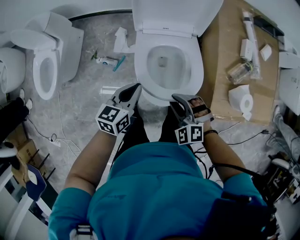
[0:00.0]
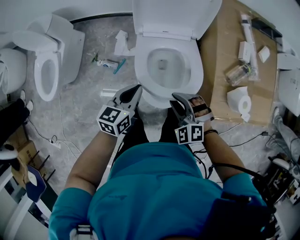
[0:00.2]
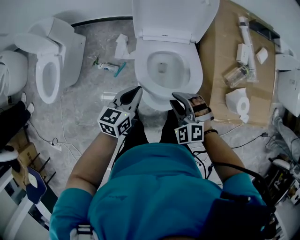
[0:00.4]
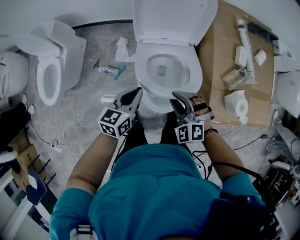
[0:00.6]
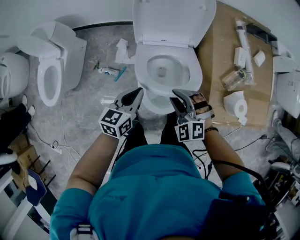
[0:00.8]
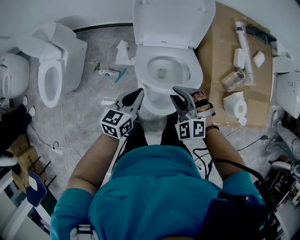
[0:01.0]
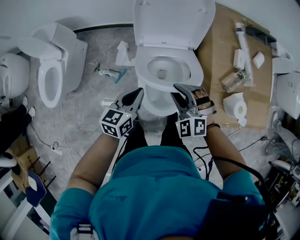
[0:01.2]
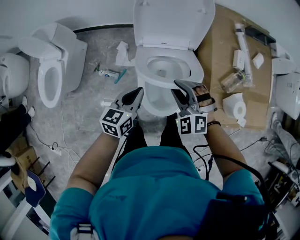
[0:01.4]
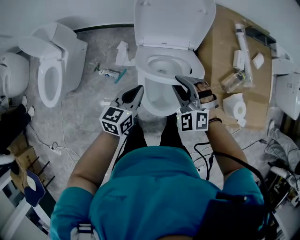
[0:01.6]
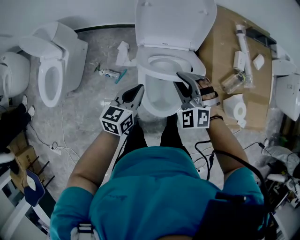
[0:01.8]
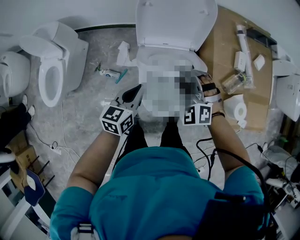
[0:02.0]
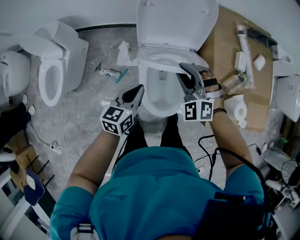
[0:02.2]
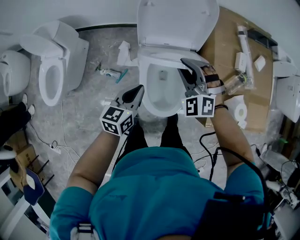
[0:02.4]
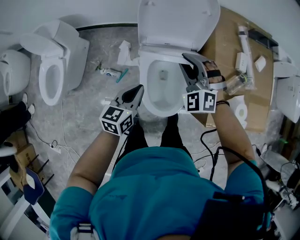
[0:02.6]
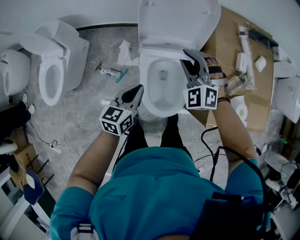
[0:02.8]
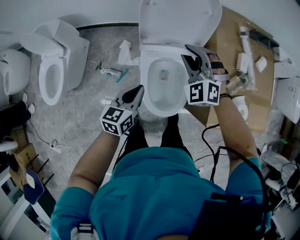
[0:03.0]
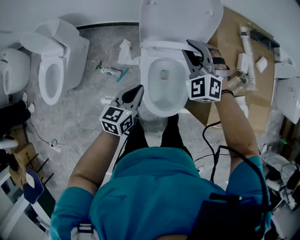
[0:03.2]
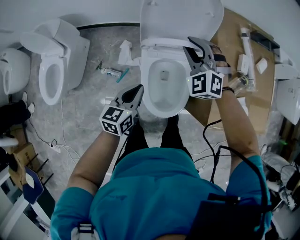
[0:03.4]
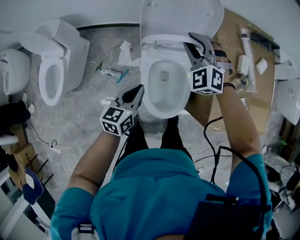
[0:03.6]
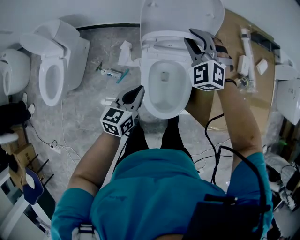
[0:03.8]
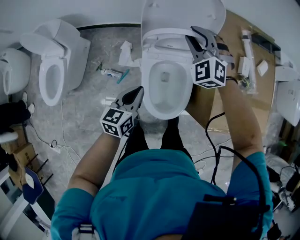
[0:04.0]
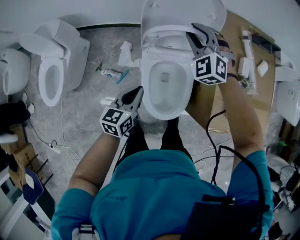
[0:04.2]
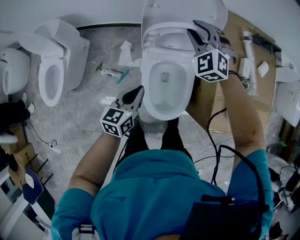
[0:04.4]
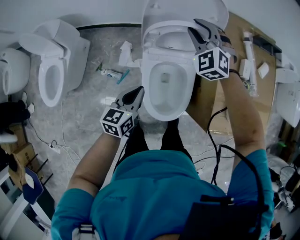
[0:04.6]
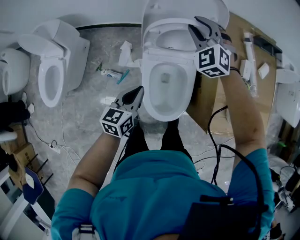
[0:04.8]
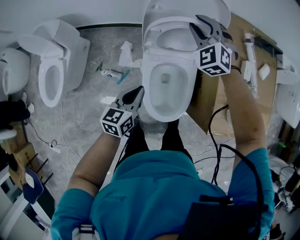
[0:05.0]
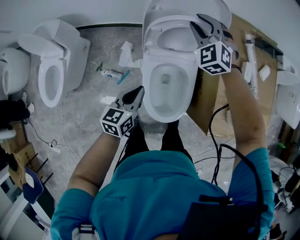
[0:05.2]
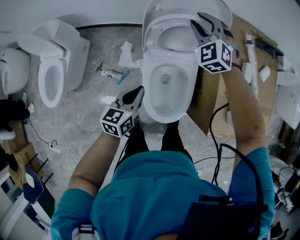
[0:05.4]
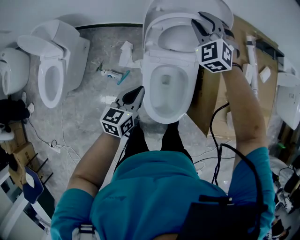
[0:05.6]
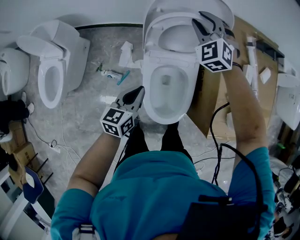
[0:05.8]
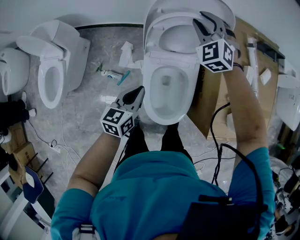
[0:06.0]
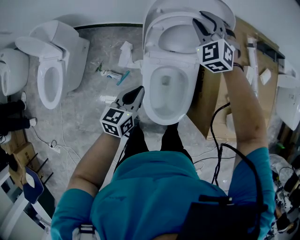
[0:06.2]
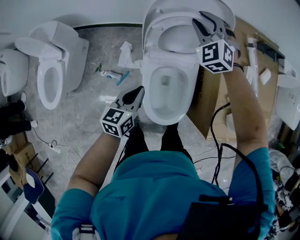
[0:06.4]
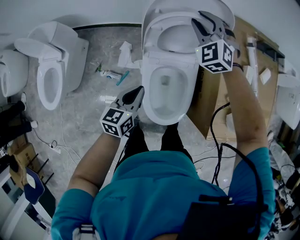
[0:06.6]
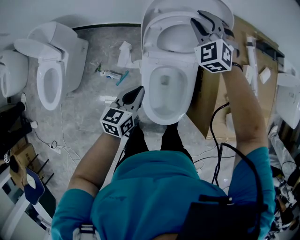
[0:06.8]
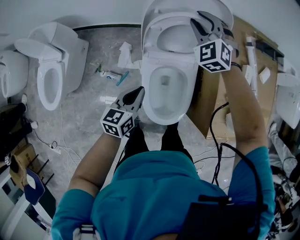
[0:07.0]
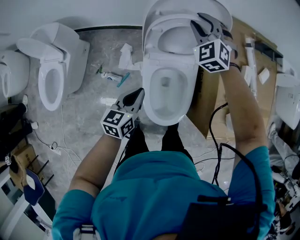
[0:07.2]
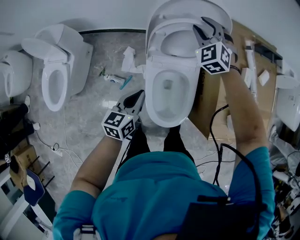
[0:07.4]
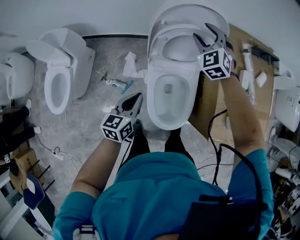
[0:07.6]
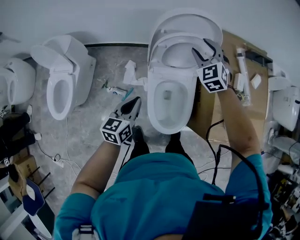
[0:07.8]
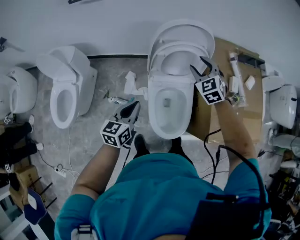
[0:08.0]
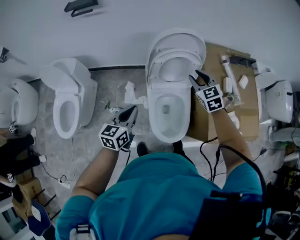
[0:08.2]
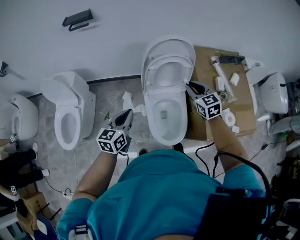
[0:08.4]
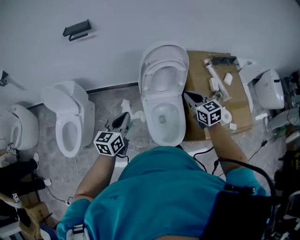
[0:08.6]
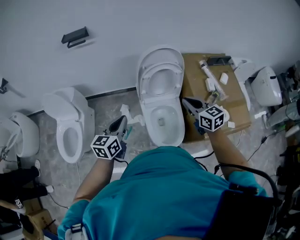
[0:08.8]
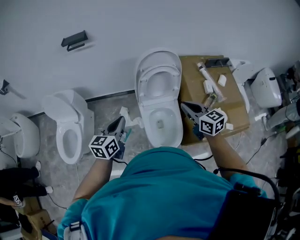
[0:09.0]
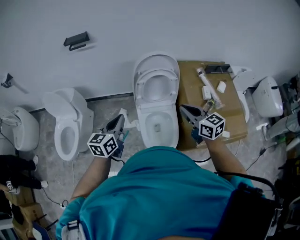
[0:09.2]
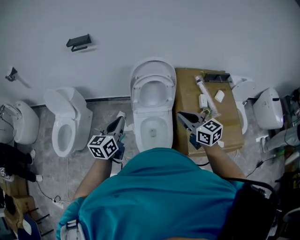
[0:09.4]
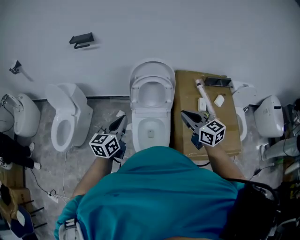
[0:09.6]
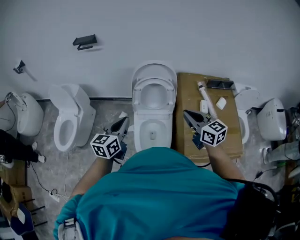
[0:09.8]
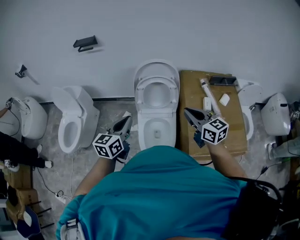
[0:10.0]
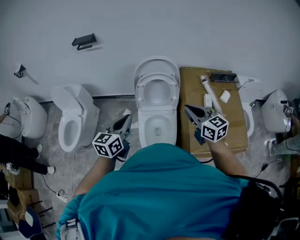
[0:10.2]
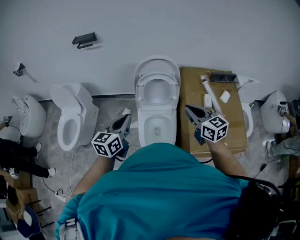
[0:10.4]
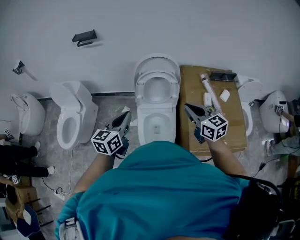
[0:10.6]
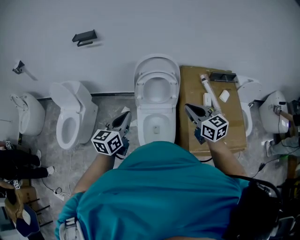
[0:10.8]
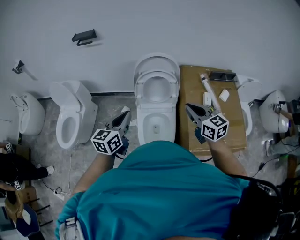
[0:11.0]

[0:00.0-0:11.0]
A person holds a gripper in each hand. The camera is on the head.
0:00.0 to 0:01.6: The left gripper shifts by some 5 cm, while the right gripper shifts roughly 15 cm forward and upward.
0:01.6 to 0:03.2: The right gripper shifts about 15 cm forward.
0:03.2 to 0:04.8: The right gripper travels forward by approximately 10 cm.
0:04.8 to 0:06.2: The right gripper shifts some 5 cm forward.
0:06.2 to 0:07.8: The left gripper goes some 5 cm upward; the right gripper is displaced backward by about 5 cm.
0:07.8 to 0:09.4: The right gripper moves backward and upward, approximately 35 cm, twists approximately 40 degrees clockwise, seen from behind, and closes up, while the left gripper goes about 20 cm upward.
0:09.4 to 0:11.0: The grippers move only a little.

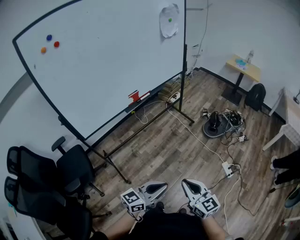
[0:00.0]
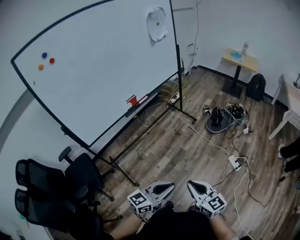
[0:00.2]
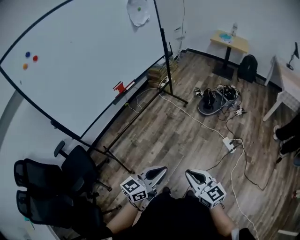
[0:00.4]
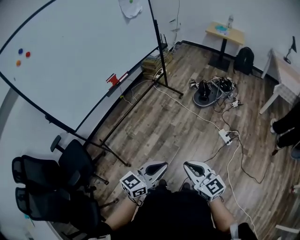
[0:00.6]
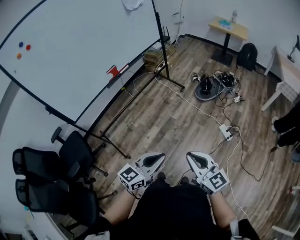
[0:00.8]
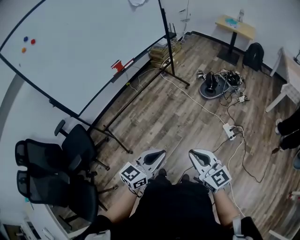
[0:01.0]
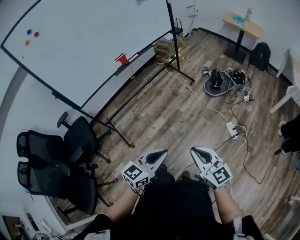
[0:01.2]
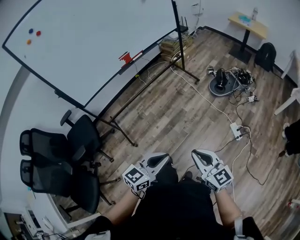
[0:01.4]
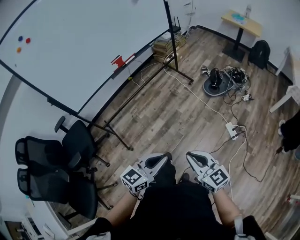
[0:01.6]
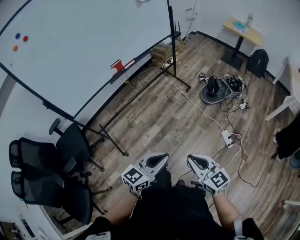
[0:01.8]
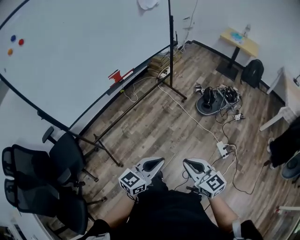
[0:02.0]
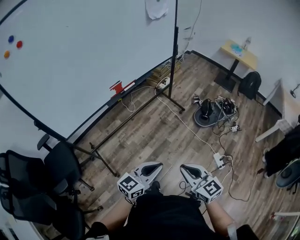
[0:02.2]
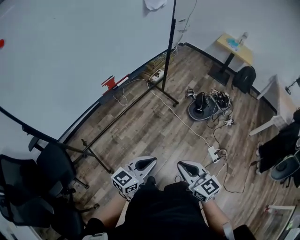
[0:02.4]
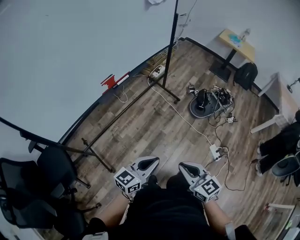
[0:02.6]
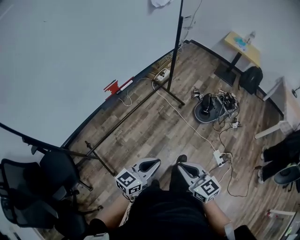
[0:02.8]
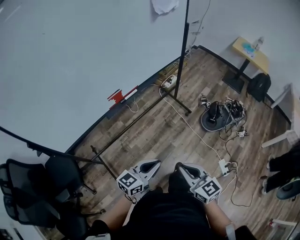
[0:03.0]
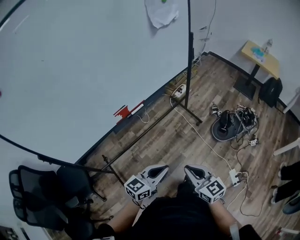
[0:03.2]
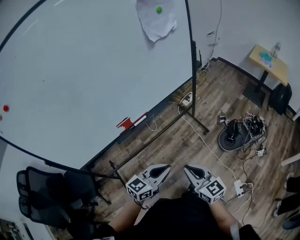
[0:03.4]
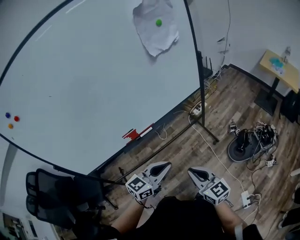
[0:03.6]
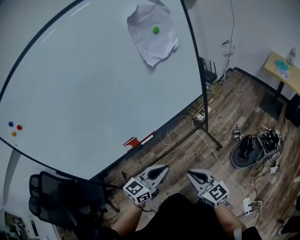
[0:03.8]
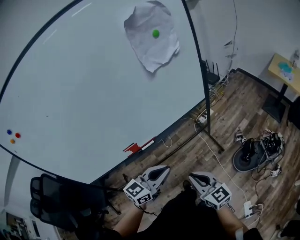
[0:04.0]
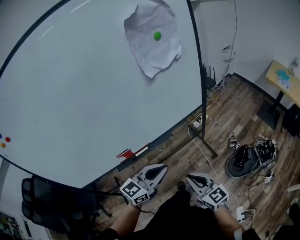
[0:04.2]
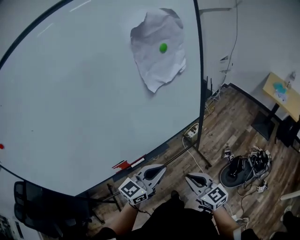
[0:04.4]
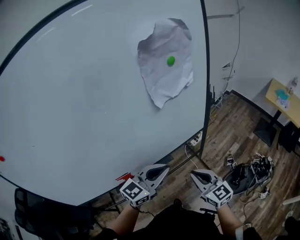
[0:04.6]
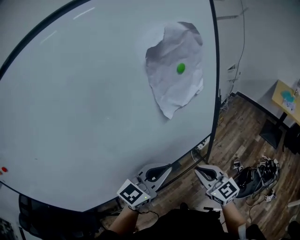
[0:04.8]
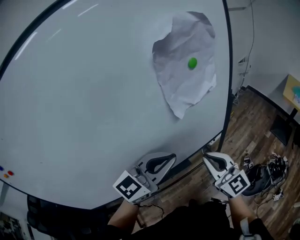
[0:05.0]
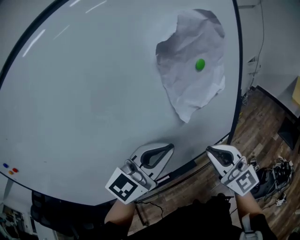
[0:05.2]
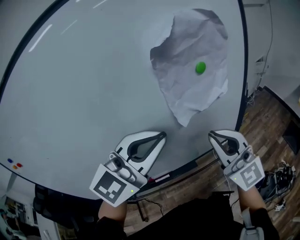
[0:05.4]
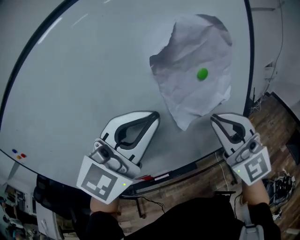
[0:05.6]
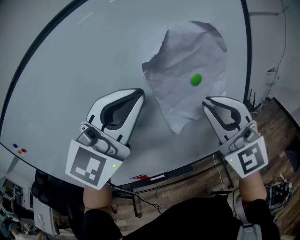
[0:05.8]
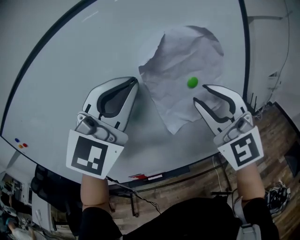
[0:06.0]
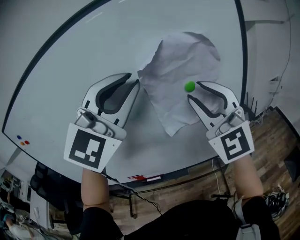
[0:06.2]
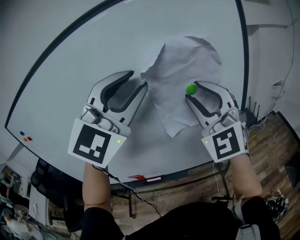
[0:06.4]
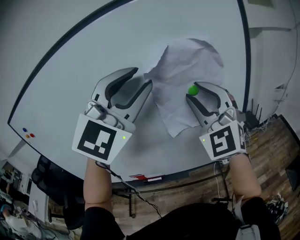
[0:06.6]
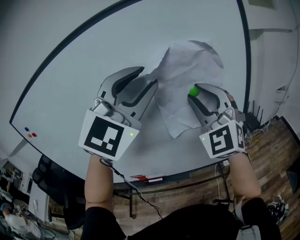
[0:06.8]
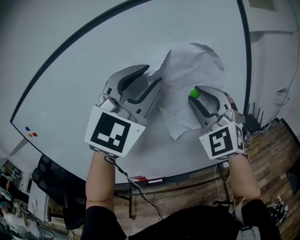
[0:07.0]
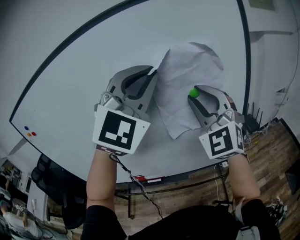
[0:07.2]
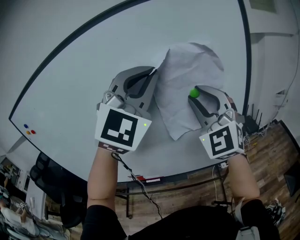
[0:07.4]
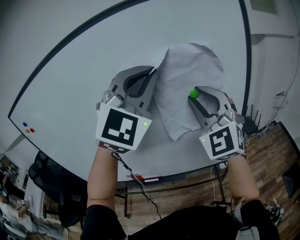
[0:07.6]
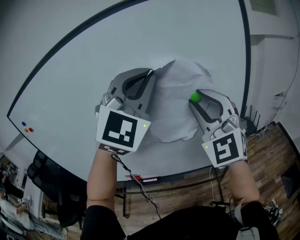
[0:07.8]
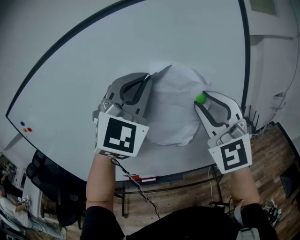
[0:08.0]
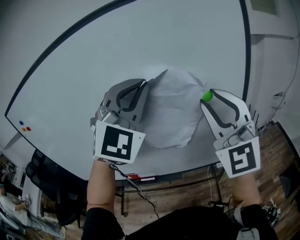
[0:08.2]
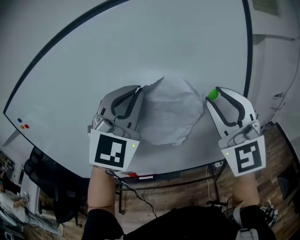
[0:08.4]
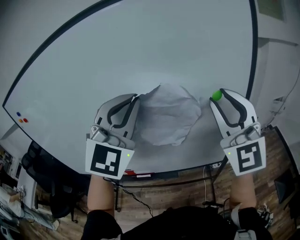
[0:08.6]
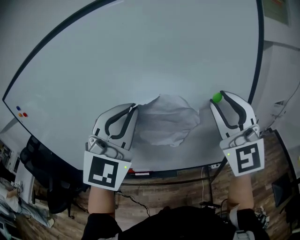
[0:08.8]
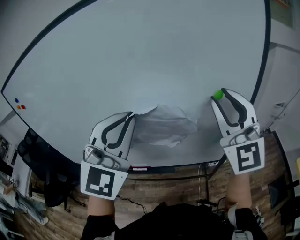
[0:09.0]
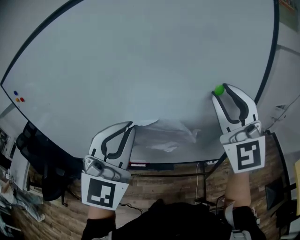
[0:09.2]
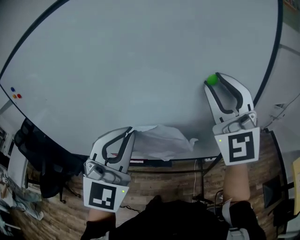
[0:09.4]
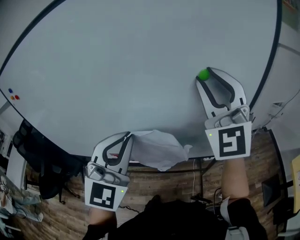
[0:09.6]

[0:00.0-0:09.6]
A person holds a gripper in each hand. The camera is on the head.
0:00.0 to 0:01.6: The grippers both shift to the right by roughly 15 cm.
0:01.6 to 0:03.2: Both grippers travel together forward, about 35 cm.
0:03.2 to 0:04.8: Both grippers are carried forward, approximately 40 cm. The left gripper travels upward by roughly 25 cm, and changes its angle by approximately 30 degrees.
0:04.8 to 0:06.4: The right gripper travels upward and forward by approximately 35 cm, twists approximately 40 degrees counterclockwise, seen from behind, and opens; the left gripper is displaced upward by roughly 30 cm, swivels some 60 degrees, and opens.
0:06.4 to 0:08.0: The left gripper closes its fingers.
0:08.0 to 0:09.6: The left gripper travels downward, backward and to the left by approximately 20 cm, and turns by roughly 20 degrees.

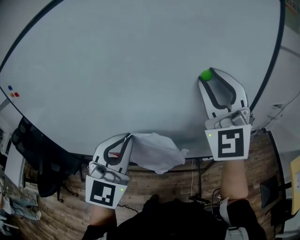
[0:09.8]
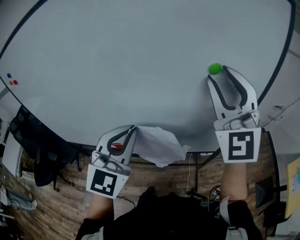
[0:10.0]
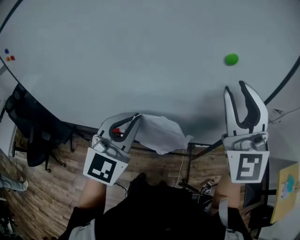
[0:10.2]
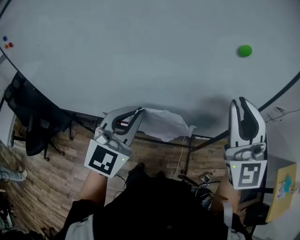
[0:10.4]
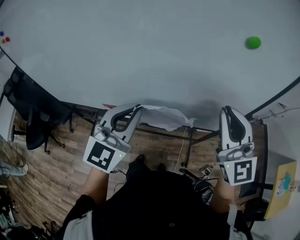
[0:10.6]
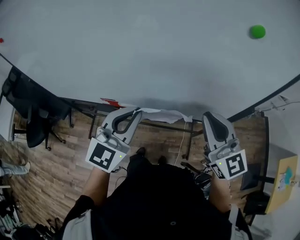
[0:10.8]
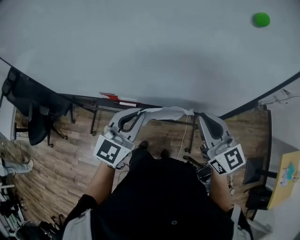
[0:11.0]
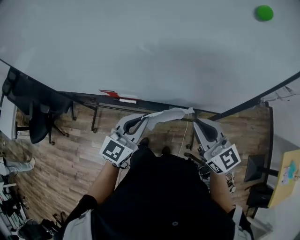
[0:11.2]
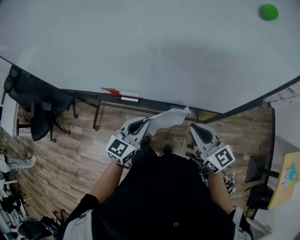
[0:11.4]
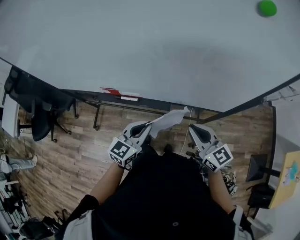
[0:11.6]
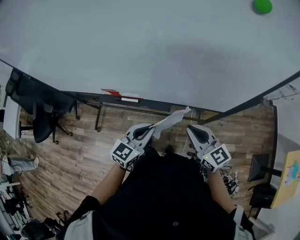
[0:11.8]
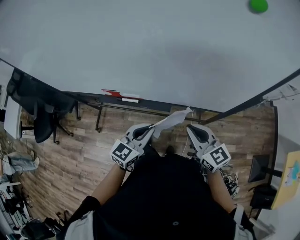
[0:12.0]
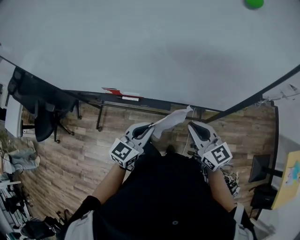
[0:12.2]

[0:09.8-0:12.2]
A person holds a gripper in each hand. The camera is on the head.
0:09.8 to 0:11.0: Both grippers move downward, approximately 25 cm. The left gripper rotates roughly 30 degrees; the right gripper twists approximately 50 degrees clockwise, seen from behind, and closes up.
0:11.0 to 0:12.2: The grippers both shift downward by approximately 15 cm.
